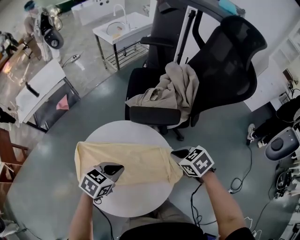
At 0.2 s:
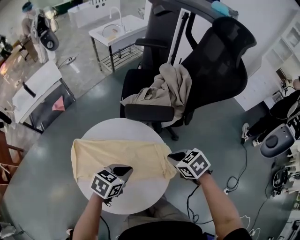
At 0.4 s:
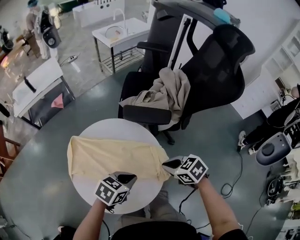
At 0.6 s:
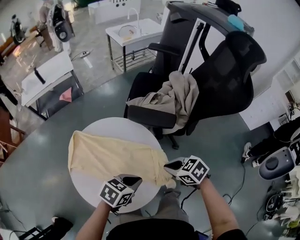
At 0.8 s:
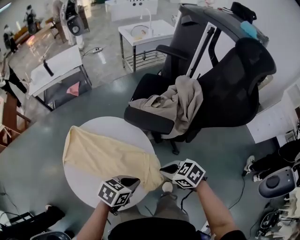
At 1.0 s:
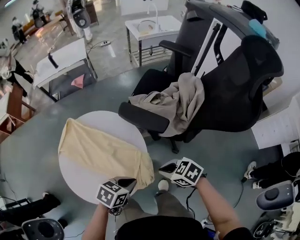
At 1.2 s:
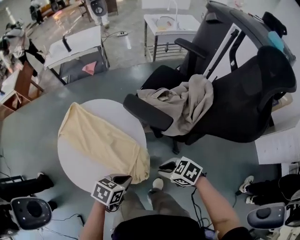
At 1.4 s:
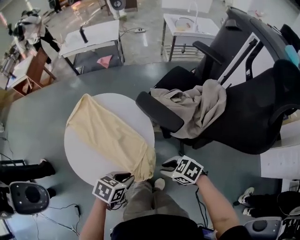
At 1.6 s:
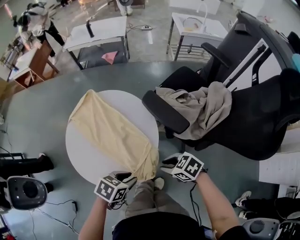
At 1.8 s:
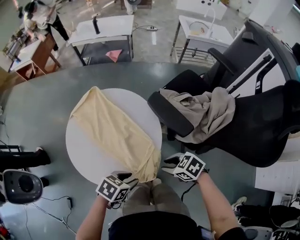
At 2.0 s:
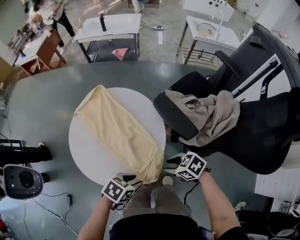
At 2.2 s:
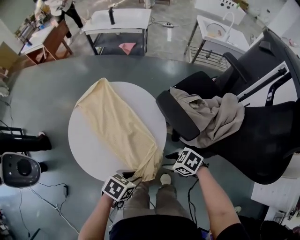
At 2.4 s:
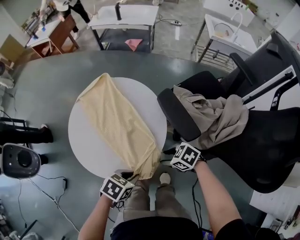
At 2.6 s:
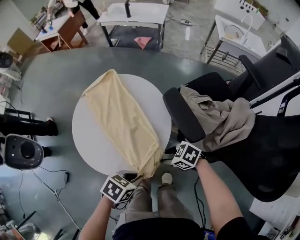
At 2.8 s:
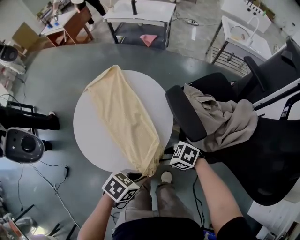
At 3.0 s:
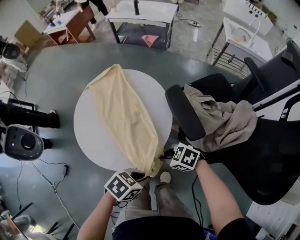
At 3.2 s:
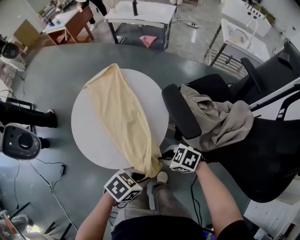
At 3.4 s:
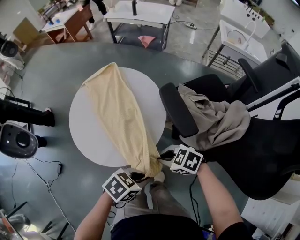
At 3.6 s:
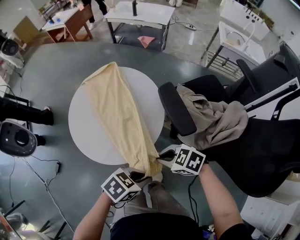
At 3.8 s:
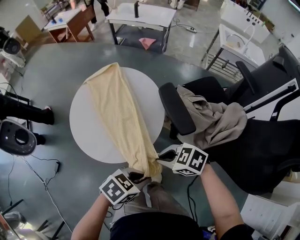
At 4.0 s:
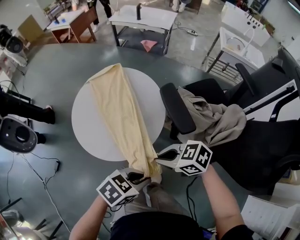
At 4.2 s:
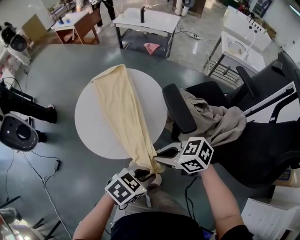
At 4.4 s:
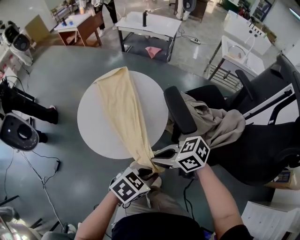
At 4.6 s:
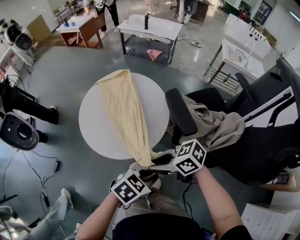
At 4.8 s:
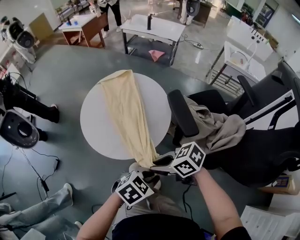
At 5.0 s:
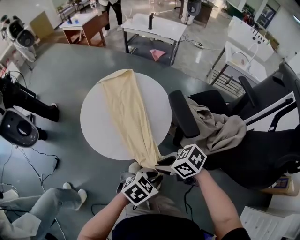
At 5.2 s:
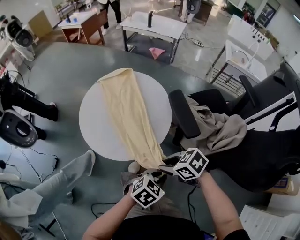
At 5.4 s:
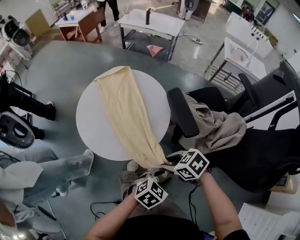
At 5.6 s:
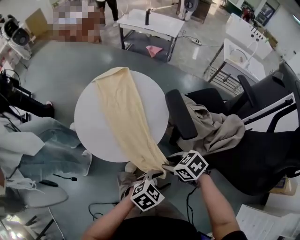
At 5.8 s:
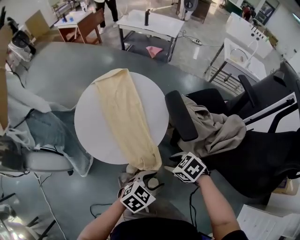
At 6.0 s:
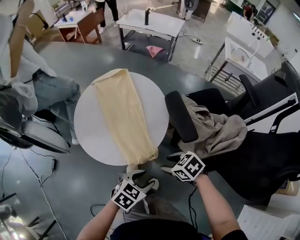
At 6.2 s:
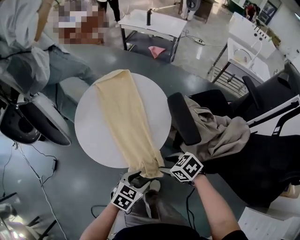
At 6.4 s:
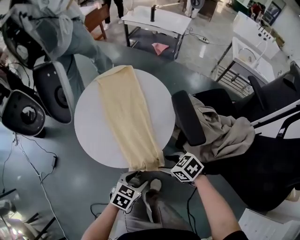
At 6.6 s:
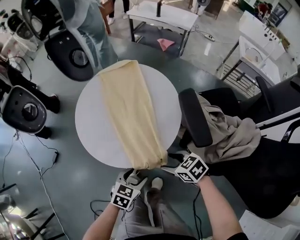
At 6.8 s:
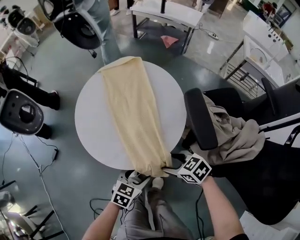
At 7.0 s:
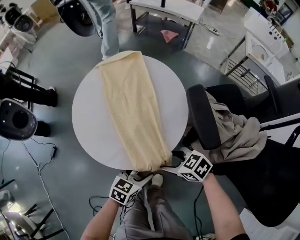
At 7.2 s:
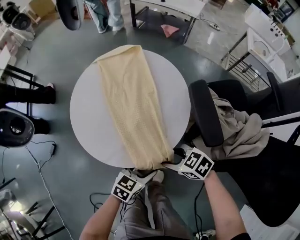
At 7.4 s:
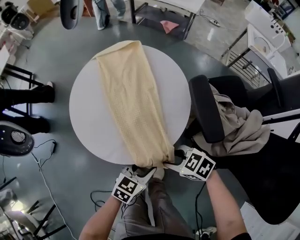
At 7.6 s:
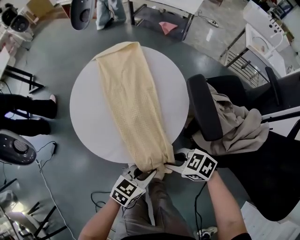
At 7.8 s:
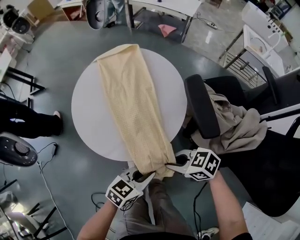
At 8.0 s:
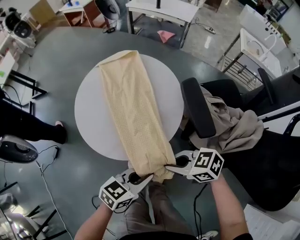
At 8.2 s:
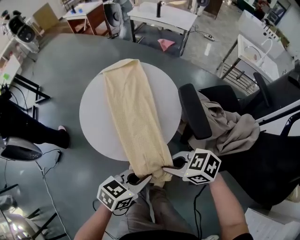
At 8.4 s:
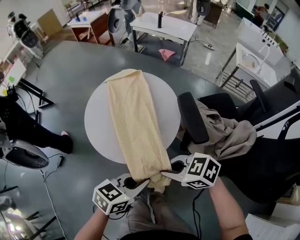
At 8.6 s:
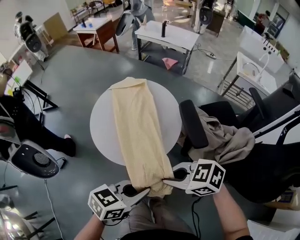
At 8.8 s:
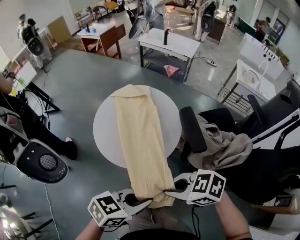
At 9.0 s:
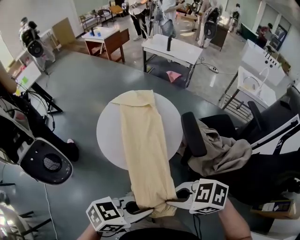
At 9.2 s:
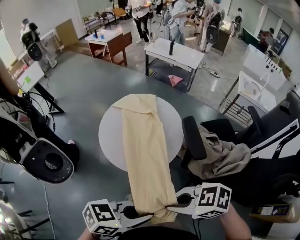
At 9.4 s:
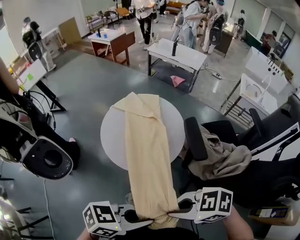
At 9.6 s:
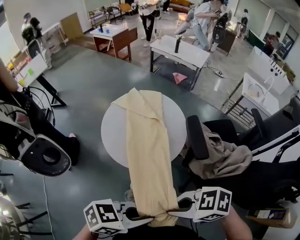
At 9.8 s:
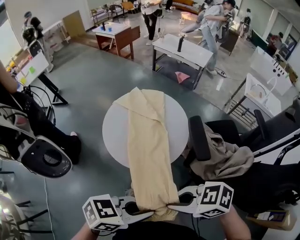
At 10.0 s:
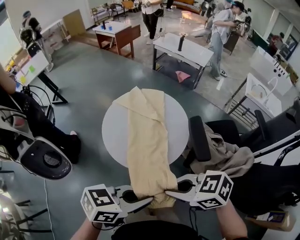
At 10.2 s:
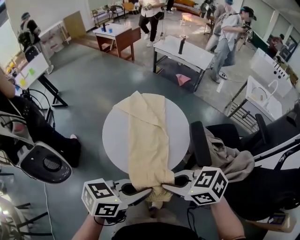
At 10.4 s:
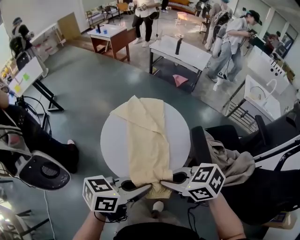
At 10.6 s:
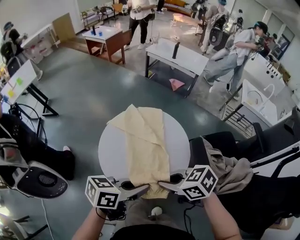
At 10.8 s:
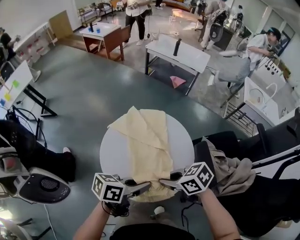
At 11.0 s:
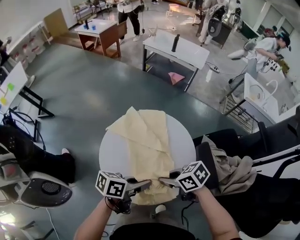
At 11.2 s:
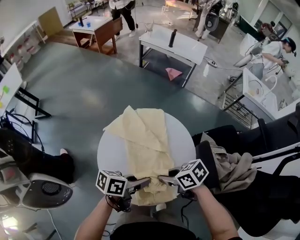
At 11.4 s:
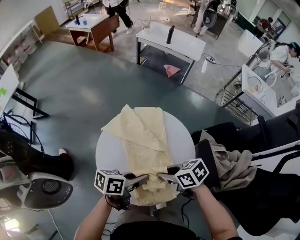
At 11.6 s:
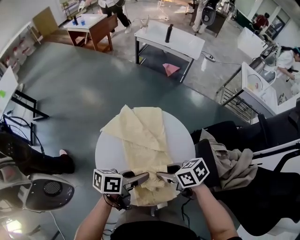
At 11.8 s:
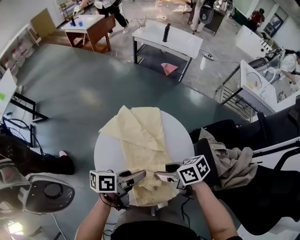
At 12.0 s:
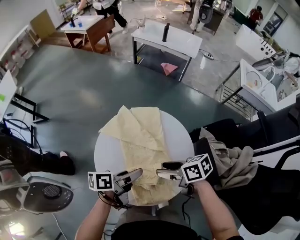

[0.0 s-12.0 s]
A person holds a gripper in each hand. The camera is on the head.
0.0 to 1.6 s: The right gripper shifts by about 10 cm, swivels roughly 60 degrees, and opens up. The left gripper ends up roughly 25 cm from where it was, twists roughly 40 degrees counterclockwise, seen from behind, and opens its fingers.
1.6 to 3.0 s: The left gripper changes place by about 10 cm; the right gripper heads downward, covering some 5 cm, and swivels about 30 degrees.
3.0 to 4.4 s: The right gripper travels upward by about 15 cm, and changes its angle by about 20 degrees, while the left gripper moves upward, roughly 5 cm.
4.4 to 6.0 s: The left gripper heads downward, covering roughly 5 cm, and opens; the right gripper shifts about 10 cm downward, turns by approximately 30 degrees, and opens.
6.0 to 7.6 s: The right gripper changes place by some 5 cm, and closes up. Meanwhile the left gripper shifts about 5 cm downward, and closes its fingers.
7.6 to 9.0 s: Both grippers move upward, some 25 cm.
9.0 to 10.4 s: The right gripper ends up roughly 15 cm from where it was; the left gripper ends up some 15 cm from where it was, and swivels approximately 20 degrees.
10.4 to 12.0 s: The left gripper moves roughly 25 cm, changes its angle by about 40 degrees, and opens. Meanwhile the right gripper shifts by some 20 cm, changes its angle by some 40 degrees, and opens.

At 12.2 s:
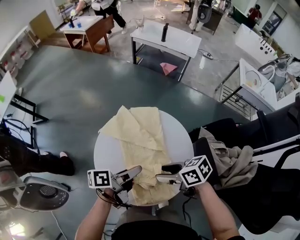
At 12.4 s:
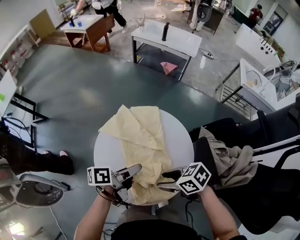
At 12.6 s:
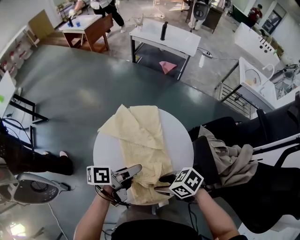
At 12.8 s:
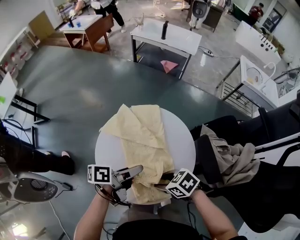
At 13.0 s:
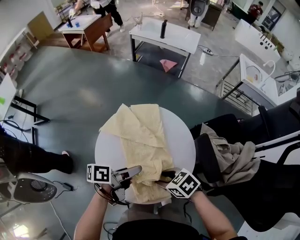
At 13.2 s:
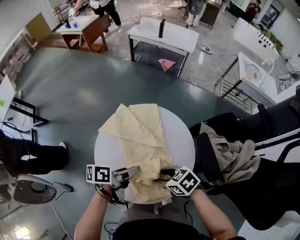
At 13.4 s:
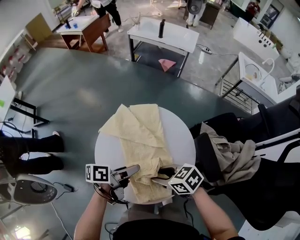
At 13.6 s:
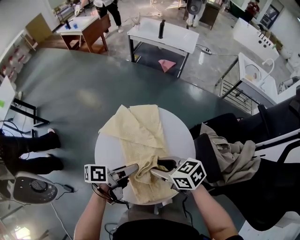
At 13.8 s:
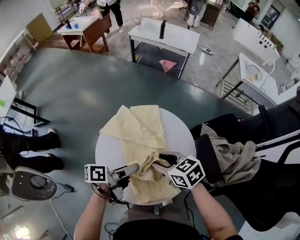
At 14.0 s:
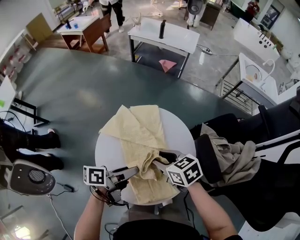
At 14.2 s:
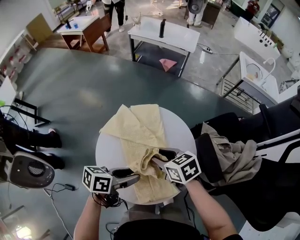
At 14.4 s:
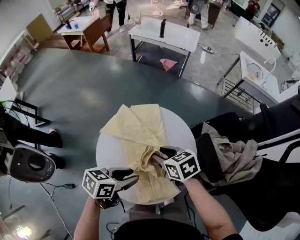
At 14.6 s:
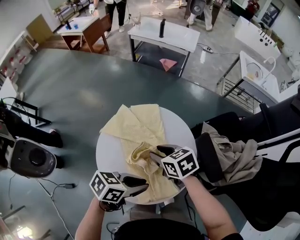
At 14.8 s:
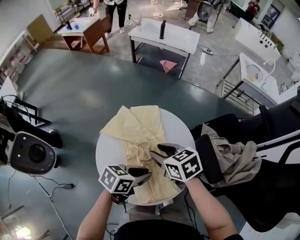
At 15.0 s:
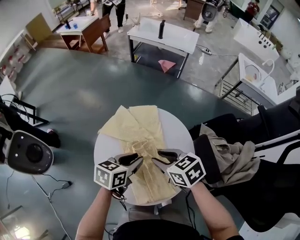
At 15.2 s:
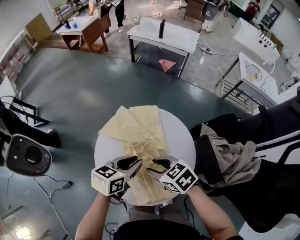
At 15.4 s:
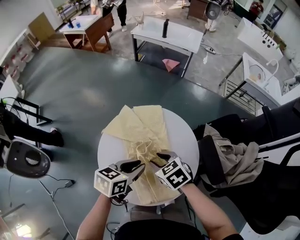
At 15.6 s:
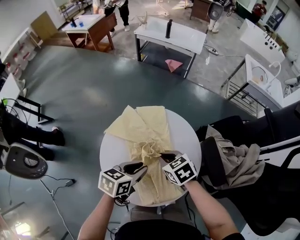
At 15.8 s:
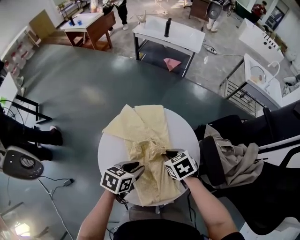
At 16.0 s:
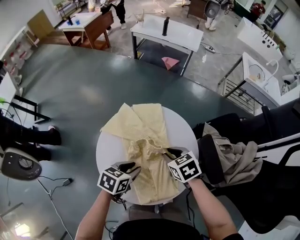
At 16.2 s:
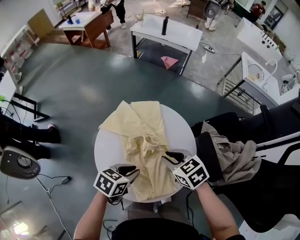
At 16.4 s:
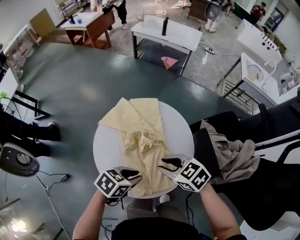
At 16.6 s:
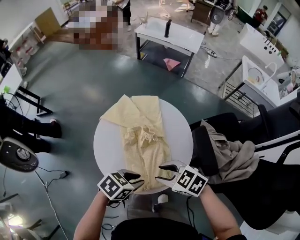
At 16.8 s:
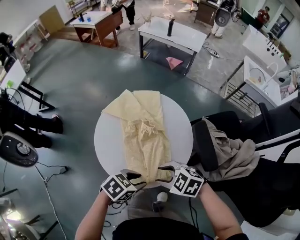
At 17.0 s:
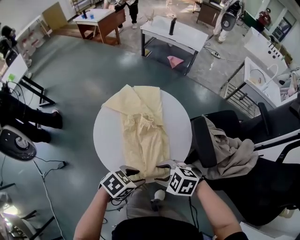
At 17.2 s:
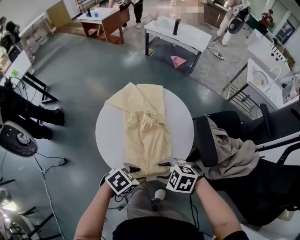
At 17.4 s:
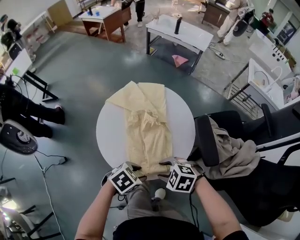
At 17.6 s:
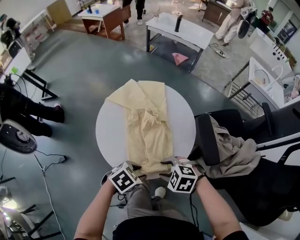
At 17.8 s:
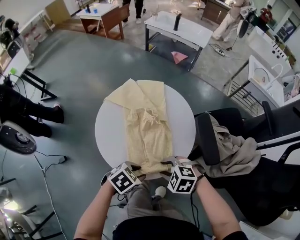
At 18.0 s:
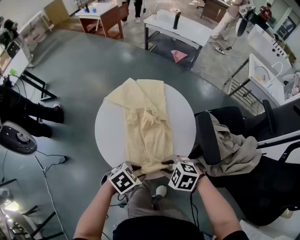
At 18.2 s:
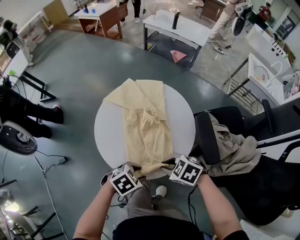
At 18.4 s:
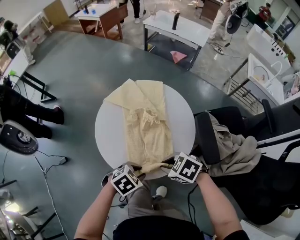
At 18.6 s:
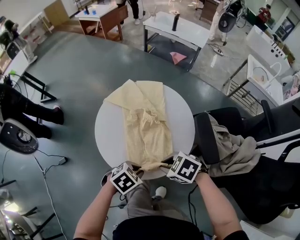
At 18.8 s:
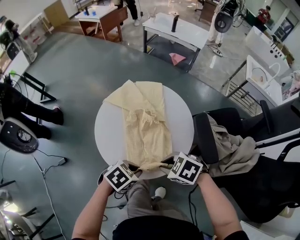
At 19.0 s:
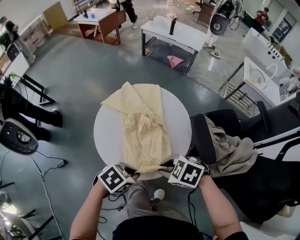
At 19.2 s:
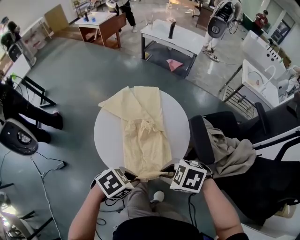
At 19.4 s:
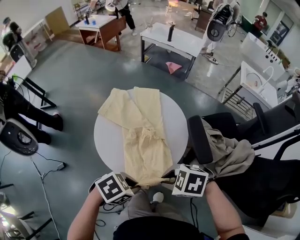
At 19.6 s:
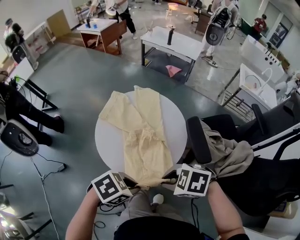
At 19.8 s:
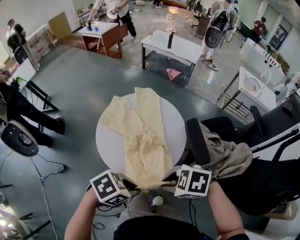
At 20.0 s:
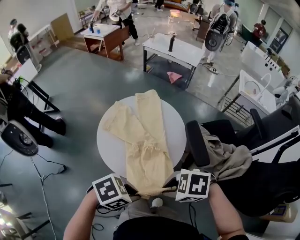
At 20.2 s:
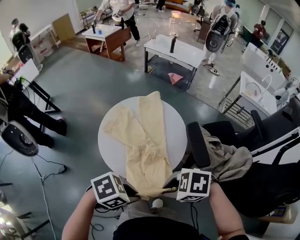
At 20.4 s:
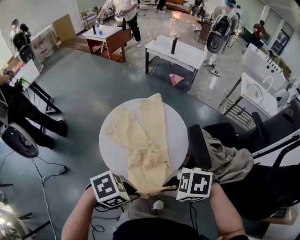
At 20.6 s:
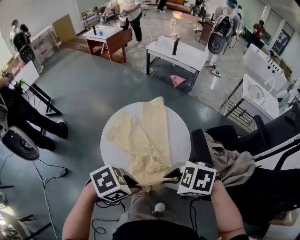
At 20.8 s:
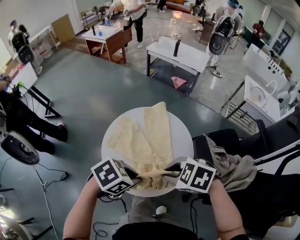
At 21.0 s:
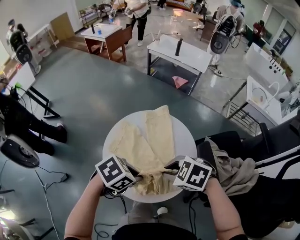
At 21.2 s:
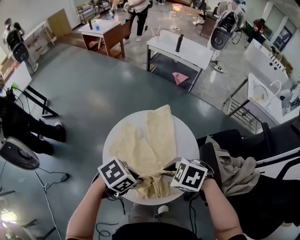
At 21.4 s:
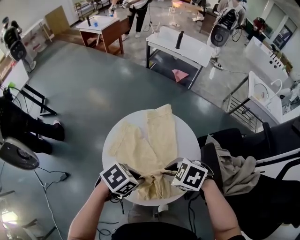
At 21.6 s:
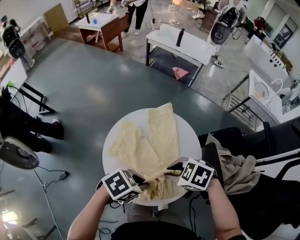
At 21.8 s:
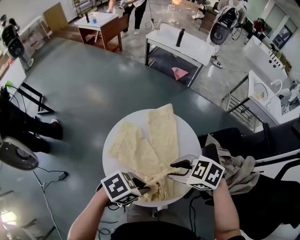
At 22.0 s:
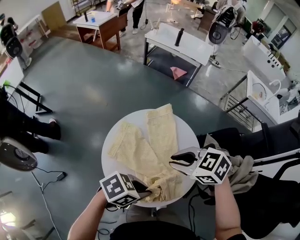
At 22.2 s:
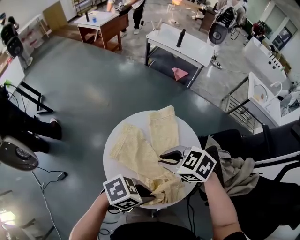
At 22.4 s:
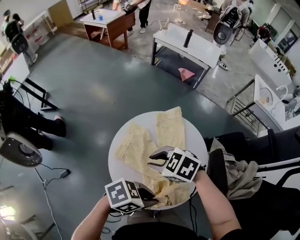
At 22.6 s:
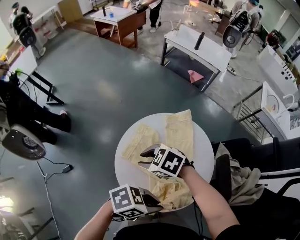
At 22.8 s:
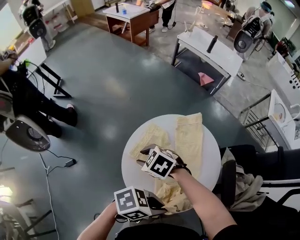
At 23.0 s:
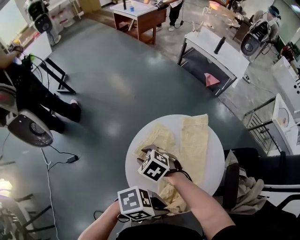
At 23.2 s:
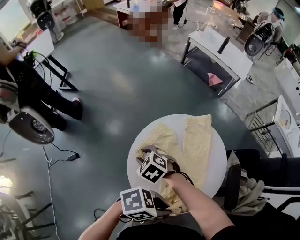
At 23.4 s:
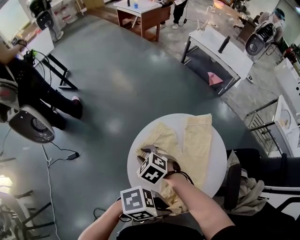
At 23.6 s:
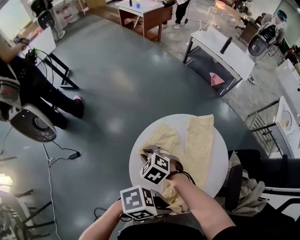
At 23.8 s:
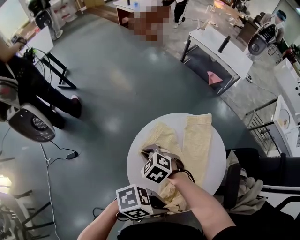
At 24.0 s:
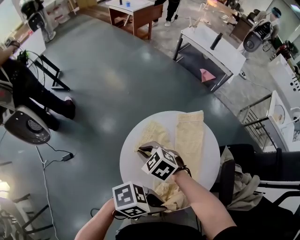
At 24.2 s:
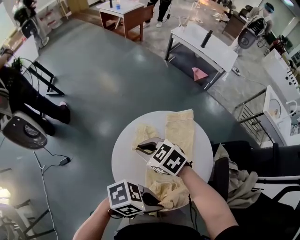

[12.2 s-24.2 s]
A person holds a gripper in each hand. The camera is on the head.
12.2 to 13.8 s: The right gripper ends up about 5 cm from where it was, and turns by some 20 degrees.
13.8 to 15.2 s: The left gripper rotates around the line of its fingers by approximately 50 degrees, clockwise from behind, and closes up.
15.2 to 16.6 s: The right gripper moves about 10 cm, and closes, then opens again. The left gripper changes place by roughly 15 cm, and rotates approximately 30 degrees.
16.6 to 18.2 s: The right gripper shifts by roughly 10 cm, and closes its fingers. The left gripper ends up approximately 10 cm from where it was.
18.2 to 19.8 s: The grippers both shift upward by approximately 15 cm. The left gripper closes up.
19.8 to 21.2 s: The right gripper shifts by about 20 cm; the left gripper changes place by approximately 20 cm.
21.2 to 22.6 s: The left gripper shifts by roughly 5 cm, and swivels some 20 degrees, while the right gripper ends up approximately 20 cm from where it was.
22.6 to 24.2 s: The right gripper moves roughly 10 cm downward and comes back, and closes up.
